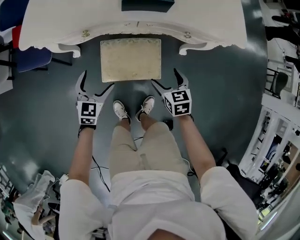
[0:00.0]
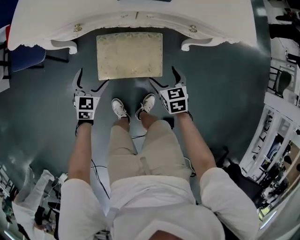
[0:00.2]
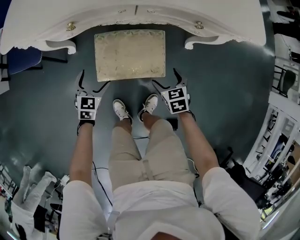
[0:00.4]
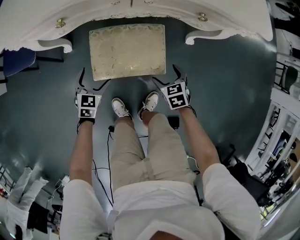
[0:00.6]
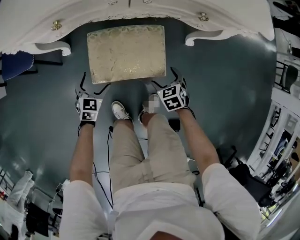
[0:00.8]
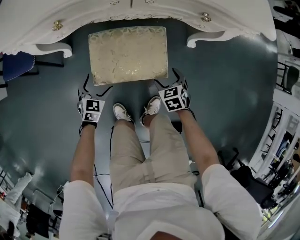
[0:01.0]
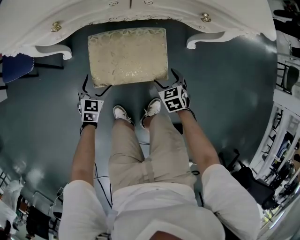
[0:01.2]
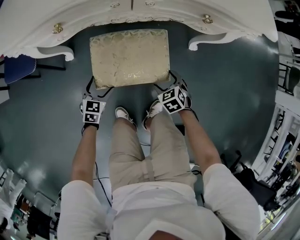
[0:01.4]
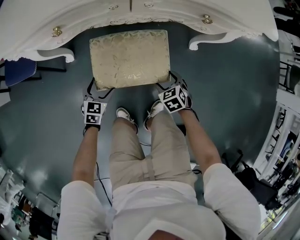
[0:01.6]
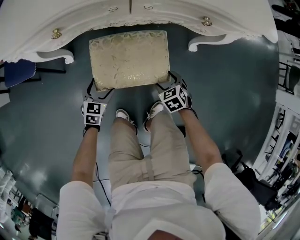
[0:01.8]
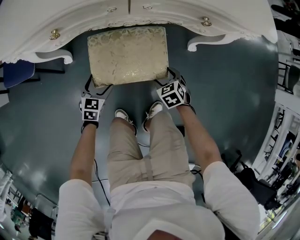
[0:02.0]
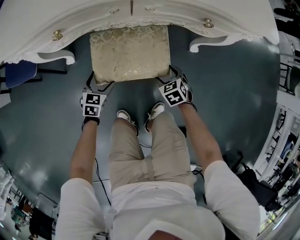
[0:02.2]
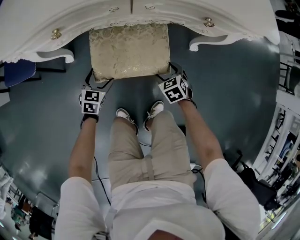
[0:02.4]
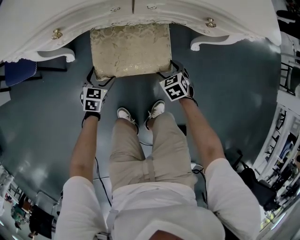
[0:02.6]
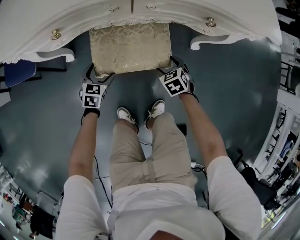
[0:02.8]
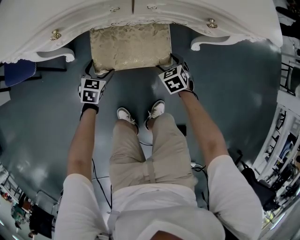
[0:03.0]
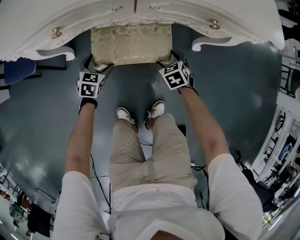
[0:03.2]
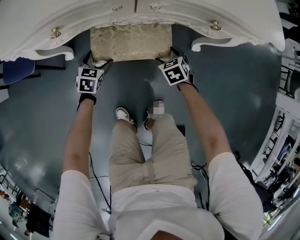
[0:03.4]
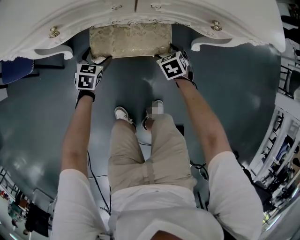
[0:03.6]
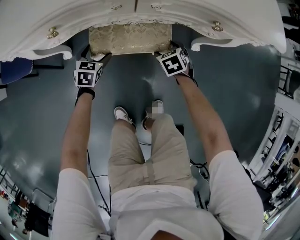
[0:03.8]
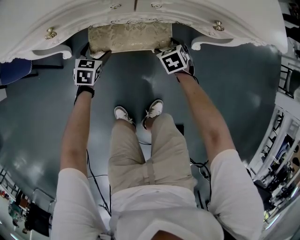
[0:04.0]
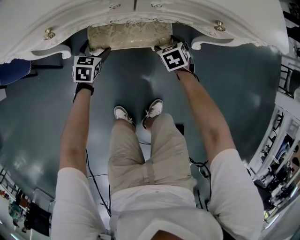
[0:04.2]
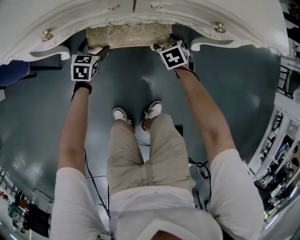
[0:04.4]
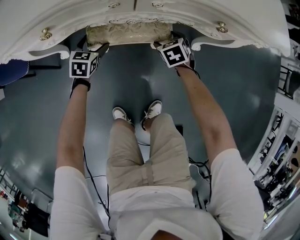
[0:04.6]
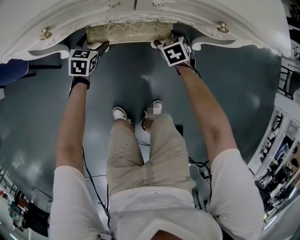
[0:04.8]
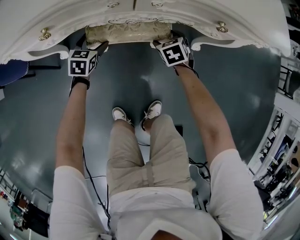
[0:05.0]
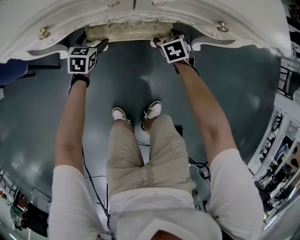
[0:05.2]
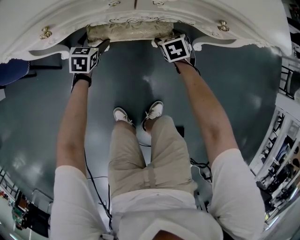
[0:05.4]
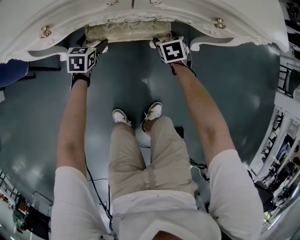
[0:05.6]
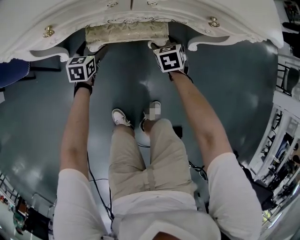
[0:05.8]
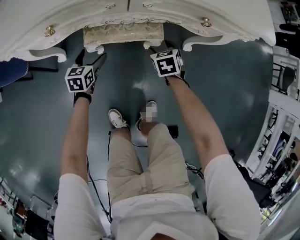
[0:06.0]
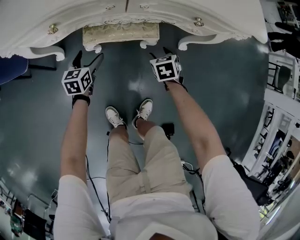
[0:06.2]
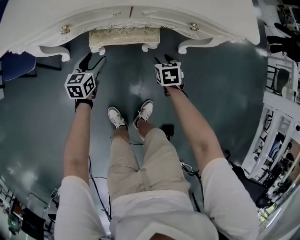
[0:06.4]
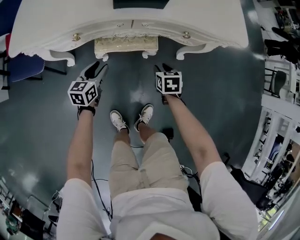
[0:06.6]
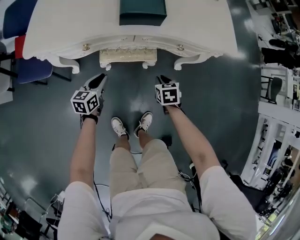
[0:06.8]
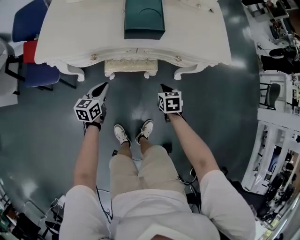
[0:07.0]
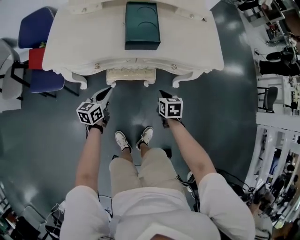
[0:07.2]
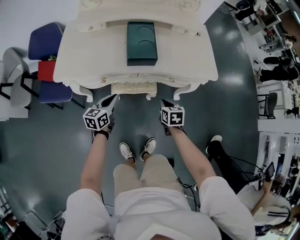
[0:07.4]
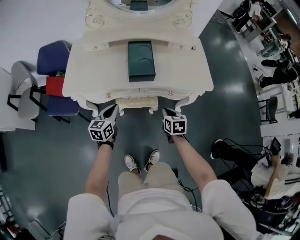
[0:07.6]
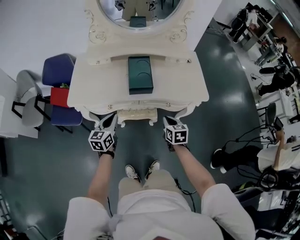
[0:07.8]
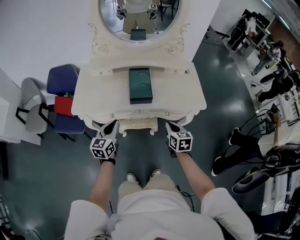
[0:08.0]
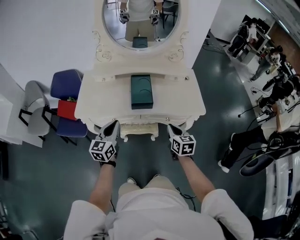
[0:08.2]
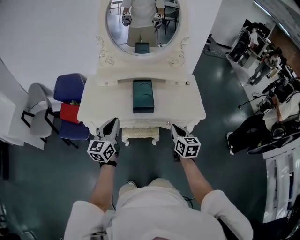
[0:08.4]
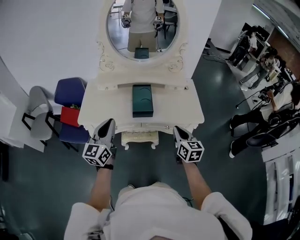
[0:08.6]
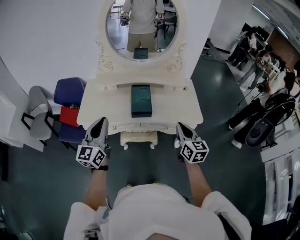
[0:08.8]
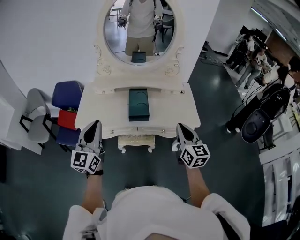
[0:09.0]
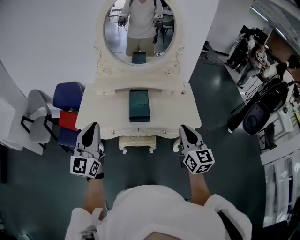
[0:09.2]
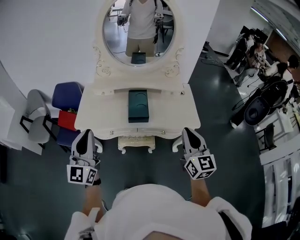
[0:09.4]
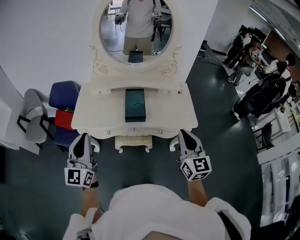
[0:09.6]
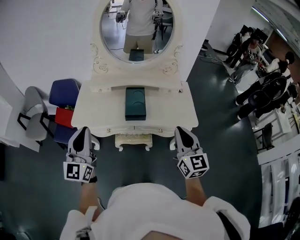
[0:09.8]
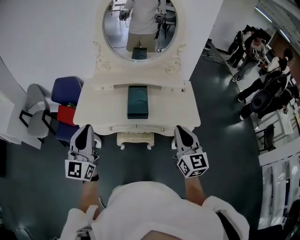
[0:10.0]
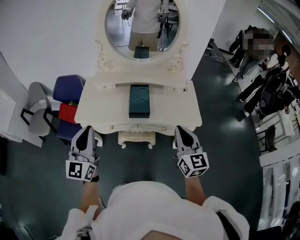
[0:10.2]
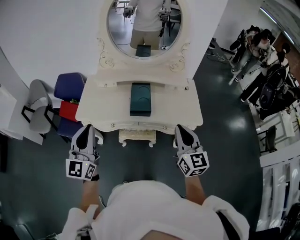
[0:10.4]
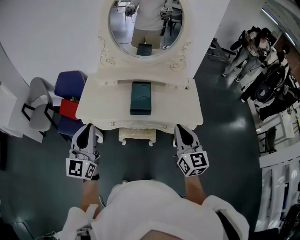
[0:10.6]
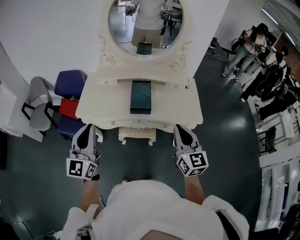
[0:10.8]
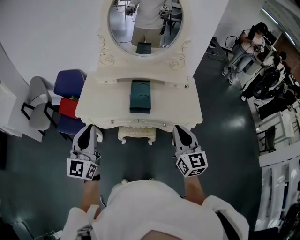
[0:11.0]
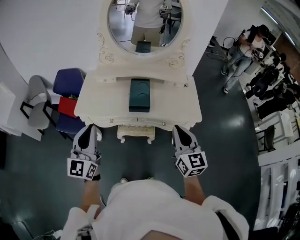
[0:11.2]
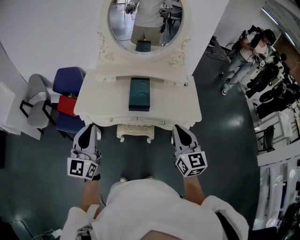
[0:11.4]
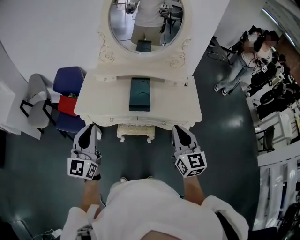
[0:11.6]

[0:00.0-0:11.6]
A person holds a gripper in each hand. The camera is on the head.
0:00.0 to 0:01.4: Both grippers travel together downward, roughly 25 cm. The right gripper turns by about 20 degrees.
0:01.4 to 0:02.8: The grippers both shift forward by about 10 cm.
0:02.8 to 0:04.4: The grippers both shift forward by some 10 cm.
0:04.4 to 0:05.8: The grippers make only small movements.
0:05.8 to 0:07.2: The left gripper is displaced upward by about 30 cm, rotates approximately 30 degrees, and closes. Meanwhile the right gripper moves upward and backward, some 30 cm, swivels roughly 20 degrees, and closes its fingers.
0:07.2 to 0:08.8: Both grippers travel together upward, about 40 cm. The left gripper changes its angle by approximately 40 degrees. Meanwhile the right gripper tilts its fingers roughly 40 degrees upward.
0:08.8 to 0:10.2: The left gripper ends up approximately 5 cm from where it was. Meanwhile the right gripper moves upward, about 5 cm.
0:10.2 to 0:11.6: There are only small adjustments of the grippers.

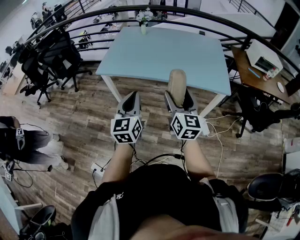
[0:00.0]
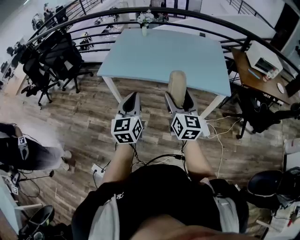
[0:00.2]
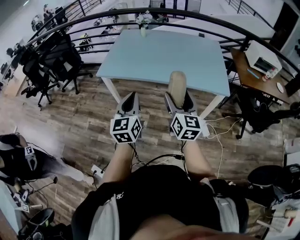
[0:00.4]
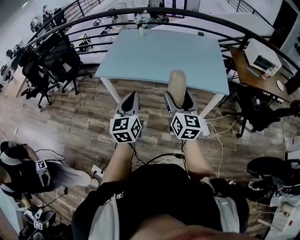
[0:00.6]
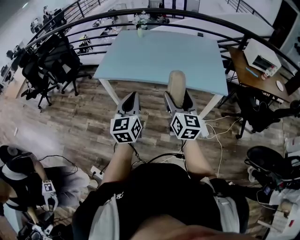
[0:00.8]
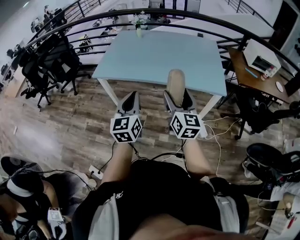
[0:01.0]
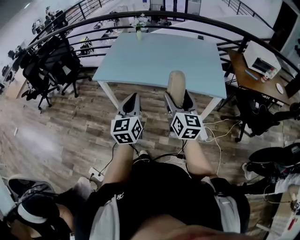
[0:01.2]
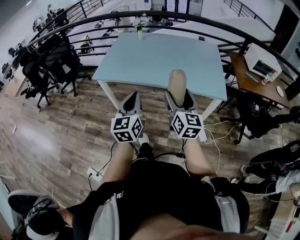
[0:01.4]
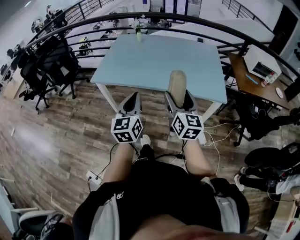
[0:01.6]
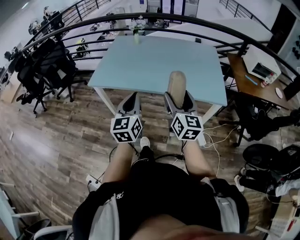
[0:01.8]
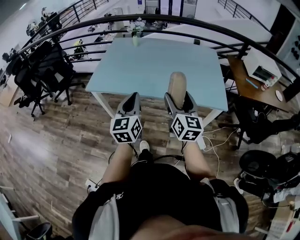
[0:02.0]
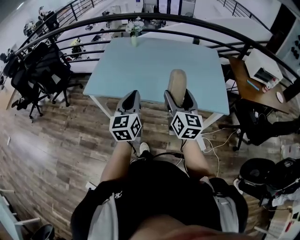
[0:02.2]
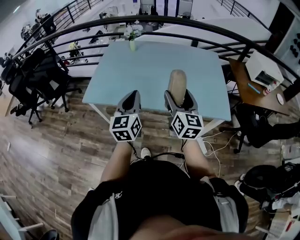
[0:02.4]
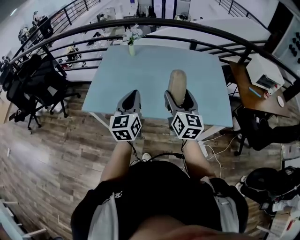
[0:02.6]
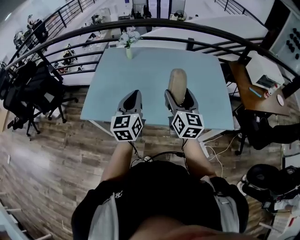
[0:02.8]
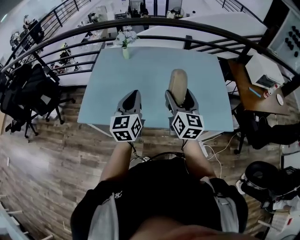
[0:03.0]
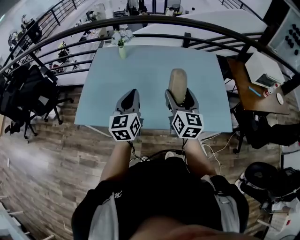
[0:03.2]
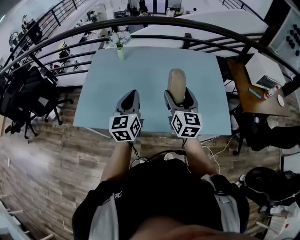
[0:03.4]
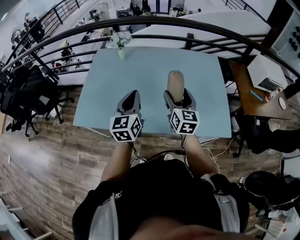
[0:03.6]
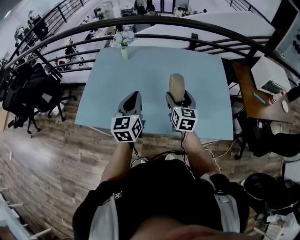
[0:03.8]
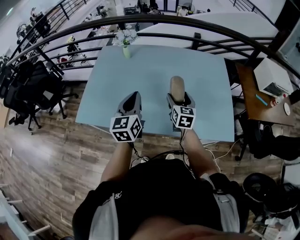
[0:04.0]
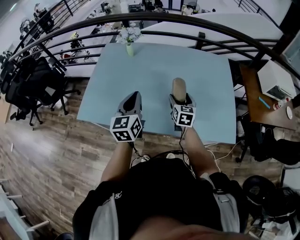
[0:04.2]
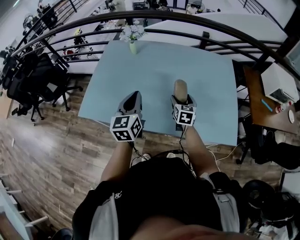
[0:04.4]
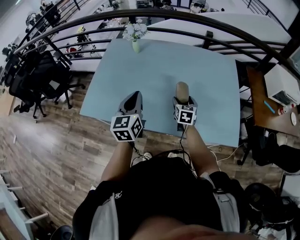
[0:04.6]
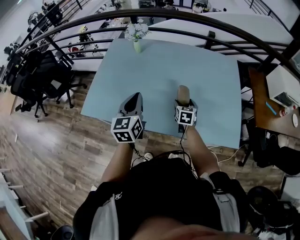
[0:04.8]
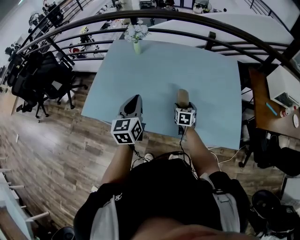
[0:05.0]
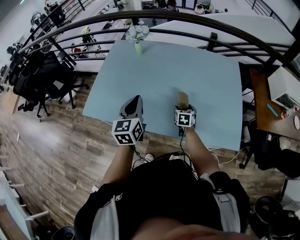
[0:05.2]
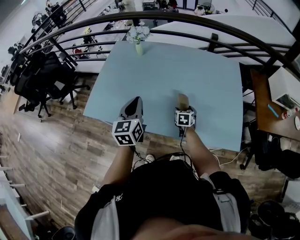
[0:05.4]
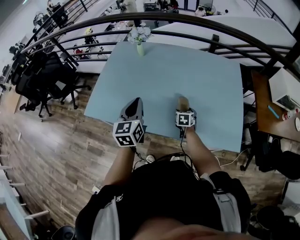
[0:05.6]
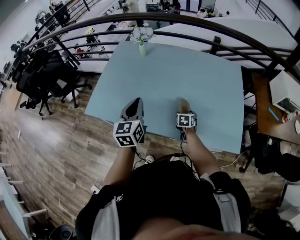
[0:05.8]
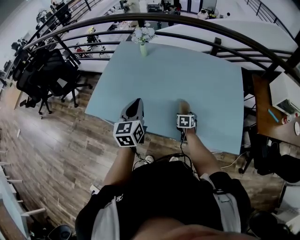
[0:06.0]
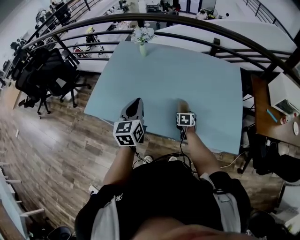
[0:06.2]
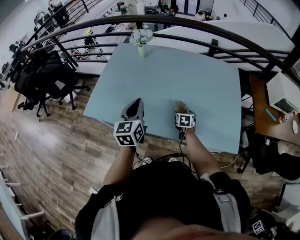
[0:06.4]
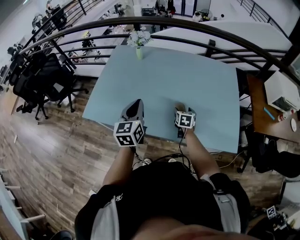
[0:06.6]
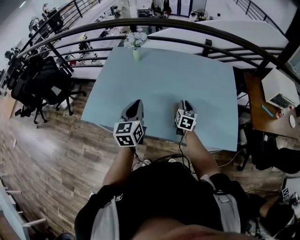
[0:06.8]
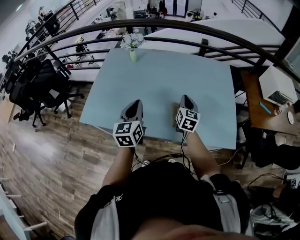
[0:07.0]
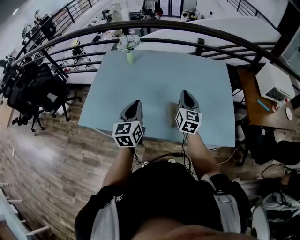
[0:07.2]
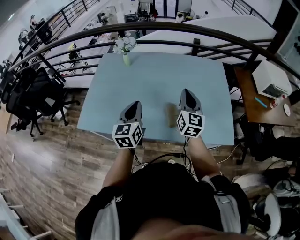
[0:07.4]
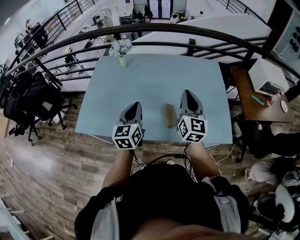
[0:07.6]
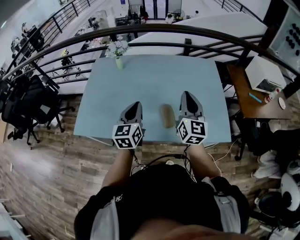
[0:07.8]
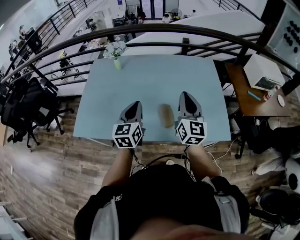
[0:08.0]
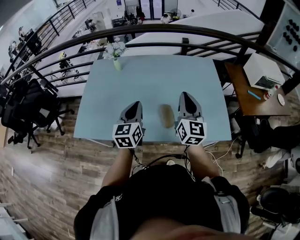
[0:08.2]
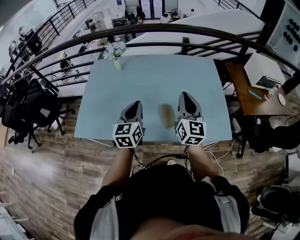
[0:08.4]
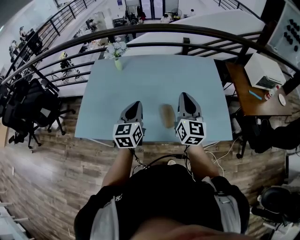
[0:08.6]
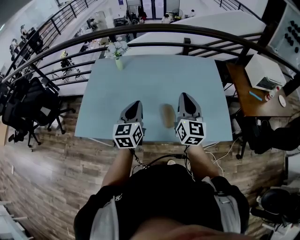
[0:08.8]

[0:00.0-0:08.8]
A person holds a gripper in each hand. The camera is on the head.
0:00.0 to 0:01.4: Both grippers travel together to the right, approximately 5 cm.
0:01.4 to 0:03.0: The grippers both shift forward by approximately 35 cm.
0:03.0 to 0:04.4: The left gripper shifts by some 5 cm. The right gripper is displaced downward and forward by about 25 cm, and turns by some 30 degrees.
0:04.4 to 0:05.8: The right gripper moves downward, approximately 15 cm, and rotates some 20 degrees.
0:05.8 to 0:07.4: The right gripper is displaced upward by some 30 cm, tilts its fingers roughly 50 degrees upward, and closes its fingers.
0:07.4 to 0:08.8: The grippers make only small movements.

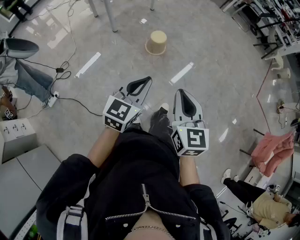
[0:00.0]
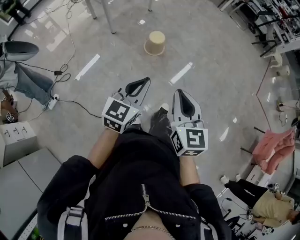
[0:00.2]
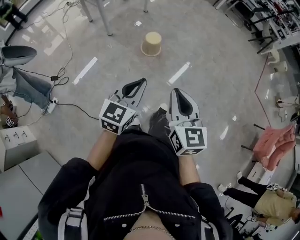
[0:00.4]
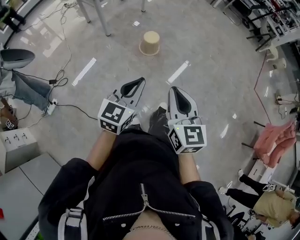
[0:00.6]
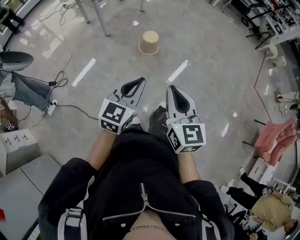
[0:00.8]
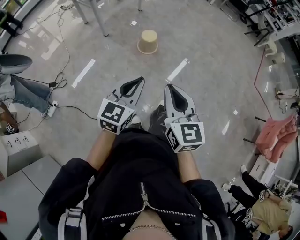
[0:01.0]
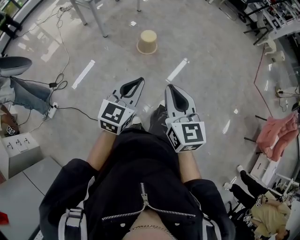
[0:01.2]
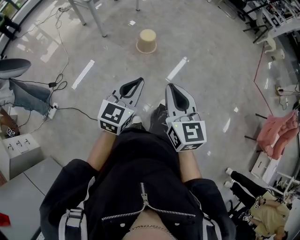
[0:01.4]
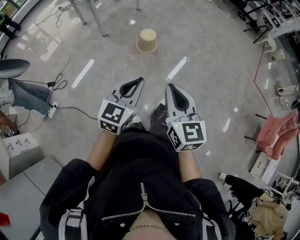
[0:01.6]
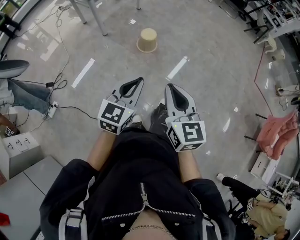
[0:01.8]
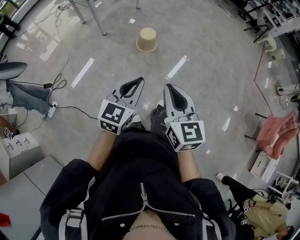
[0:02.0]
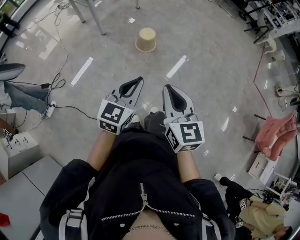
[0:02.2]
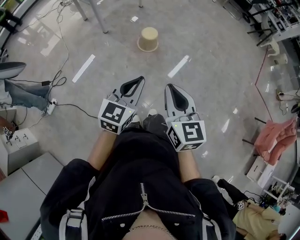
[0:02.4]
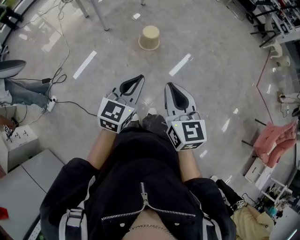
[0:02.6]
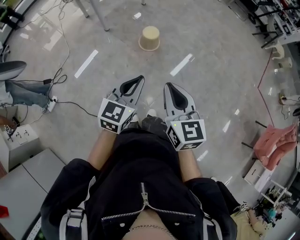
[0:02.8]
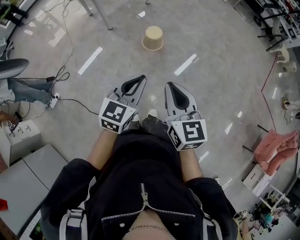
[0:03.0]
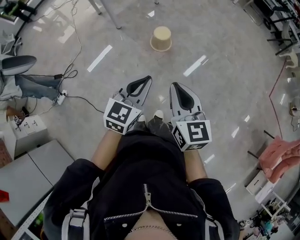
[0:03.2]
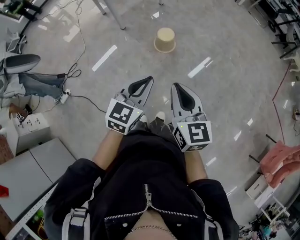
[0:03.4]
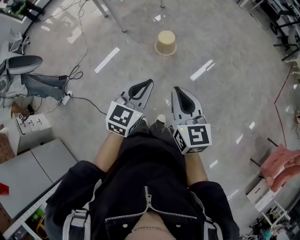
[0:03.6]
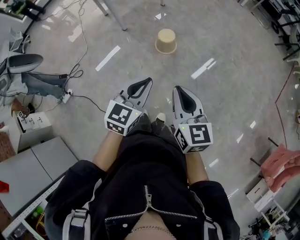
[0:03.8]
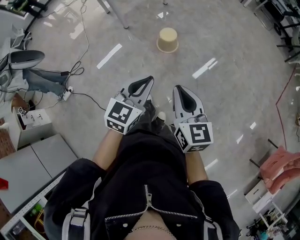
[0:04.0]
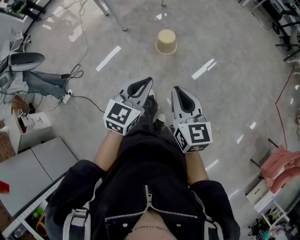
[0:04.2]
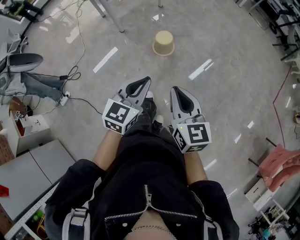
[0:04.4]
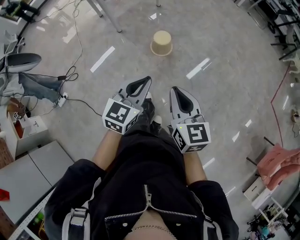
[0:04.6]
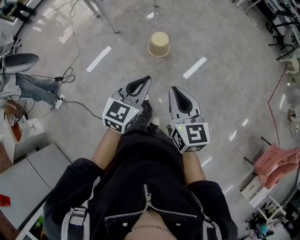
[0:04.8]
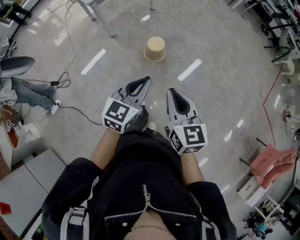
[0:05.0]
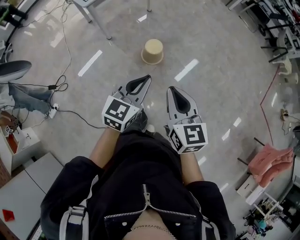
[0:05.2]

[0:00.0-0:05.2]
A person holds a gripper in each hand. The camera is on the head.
0:00.0 to 0:01.8: The grippers move only a little.
0:01.8 to 0:03.4: Both grippers move forward and to the right, approximately 15 cm.
0:03.4 to 0:05.2: The two grippers go about 15 cm forward.
